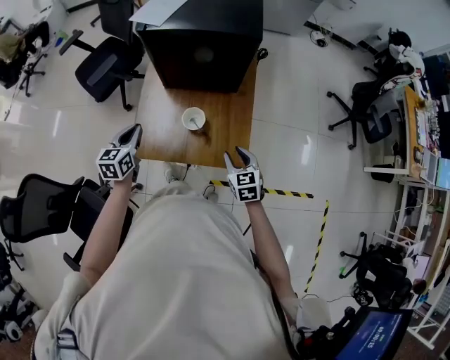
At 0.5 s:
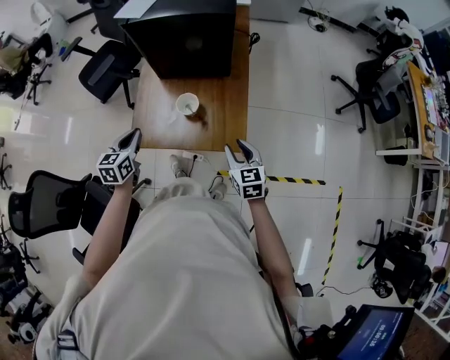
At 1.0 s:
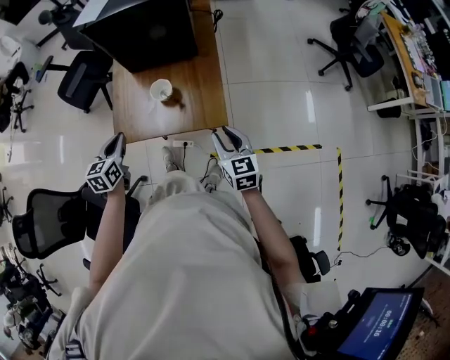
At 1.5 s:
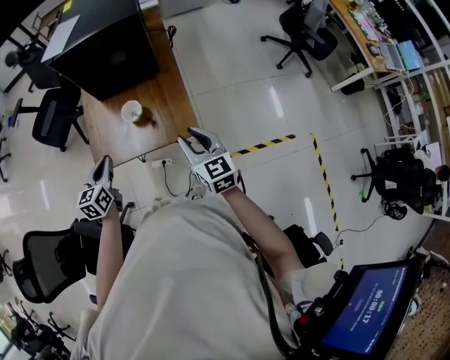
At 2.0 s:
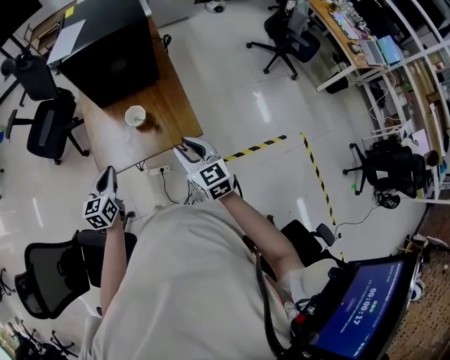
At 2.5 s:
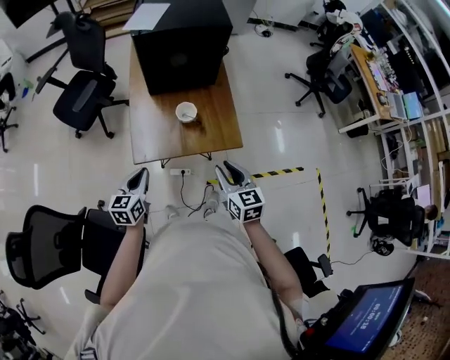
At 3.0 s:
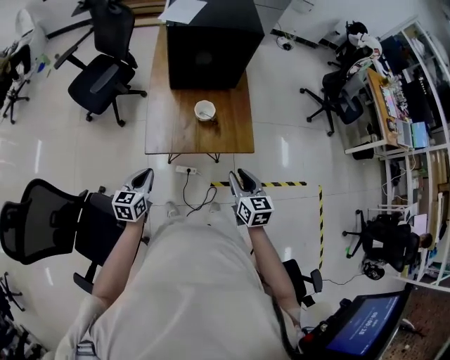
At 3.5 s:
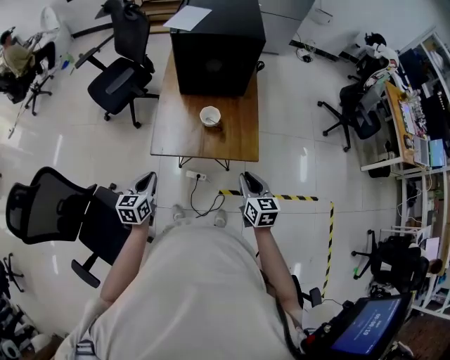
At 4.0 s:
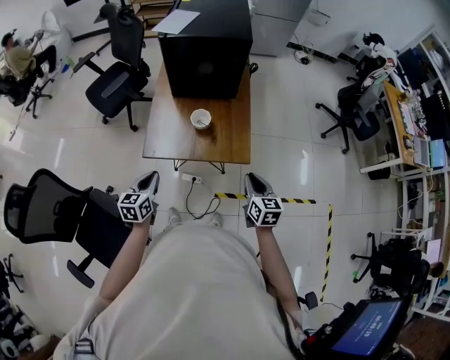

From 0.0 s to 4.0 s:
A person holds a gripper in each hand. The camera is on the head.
From 0.0 s to 2.0 s: The left gripper travels backward by approximately 15 cm. Meanwhile the right gripper moves upward and backward, approximately 20 cm, and swivels some 20 degrees.
From 2.0 s to 4.0 s: The left gripper moves backward, roughly 10 cm. Meanwhile the right gripper goes approximately 10 cm to the right and downward.

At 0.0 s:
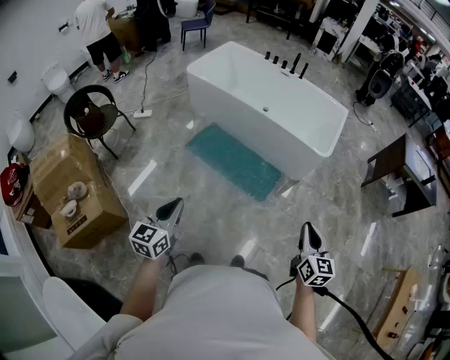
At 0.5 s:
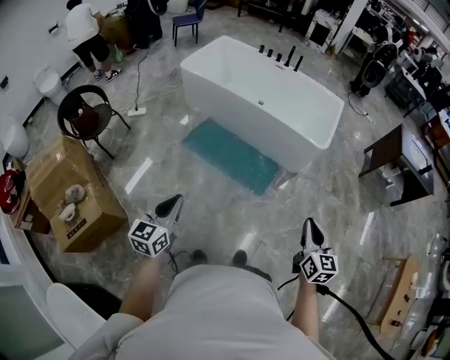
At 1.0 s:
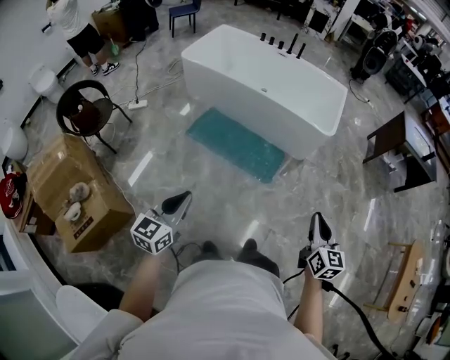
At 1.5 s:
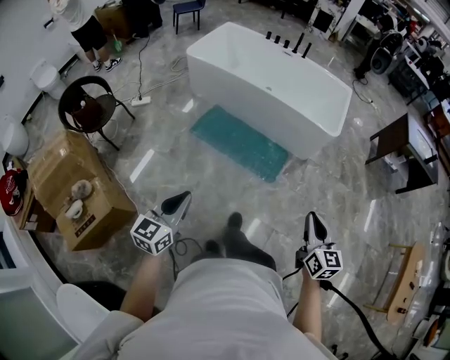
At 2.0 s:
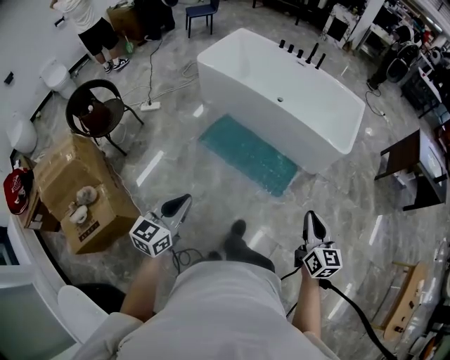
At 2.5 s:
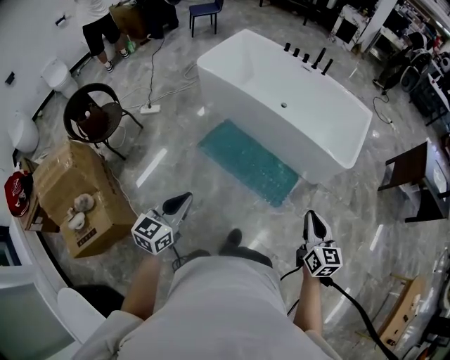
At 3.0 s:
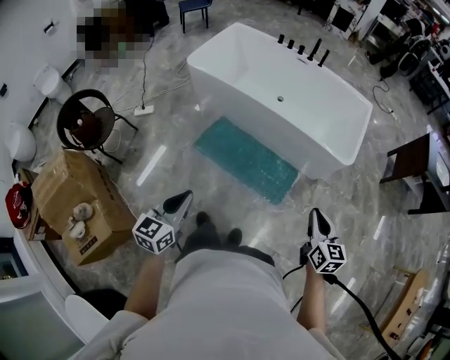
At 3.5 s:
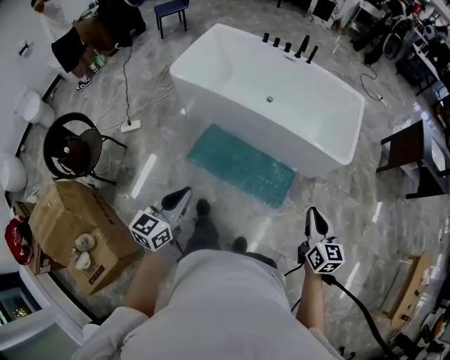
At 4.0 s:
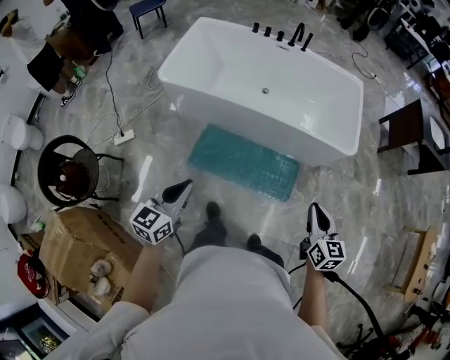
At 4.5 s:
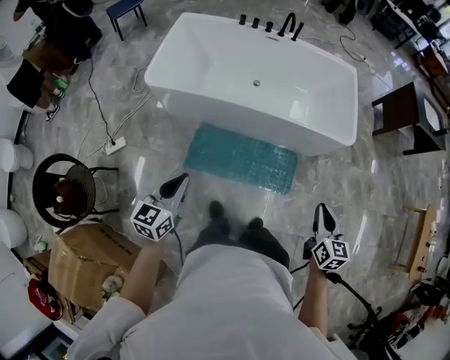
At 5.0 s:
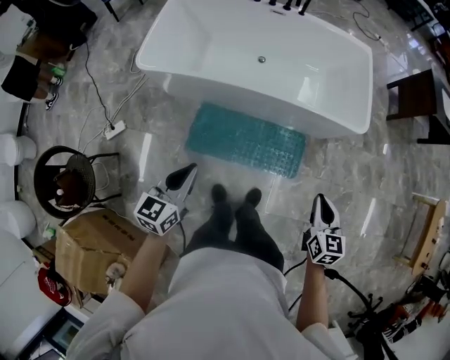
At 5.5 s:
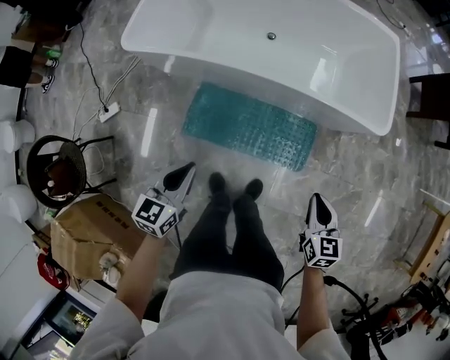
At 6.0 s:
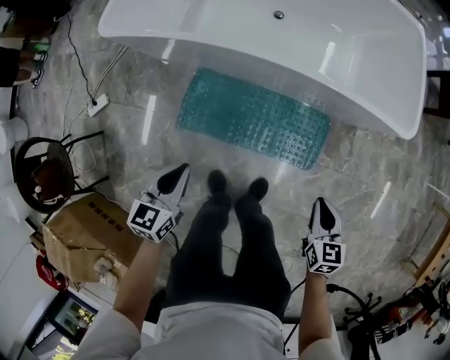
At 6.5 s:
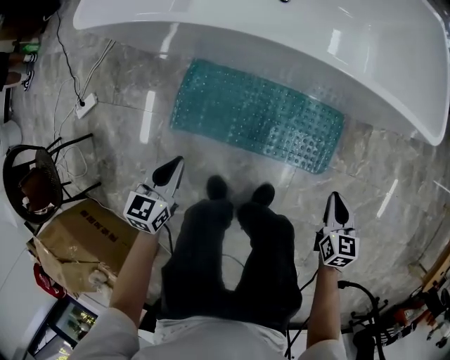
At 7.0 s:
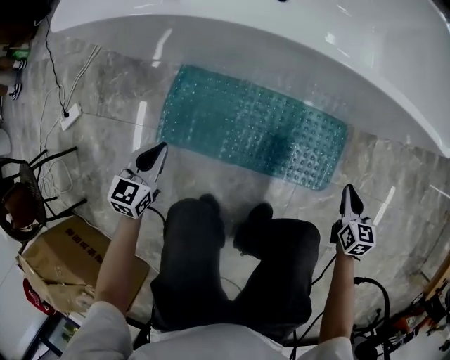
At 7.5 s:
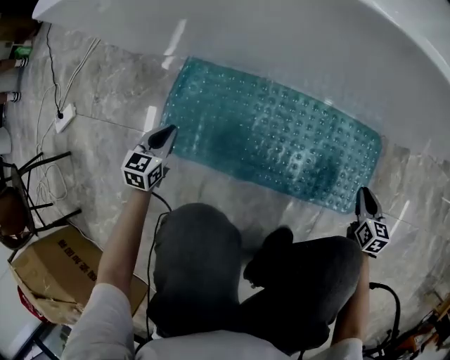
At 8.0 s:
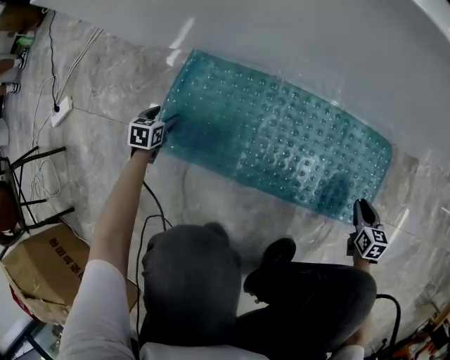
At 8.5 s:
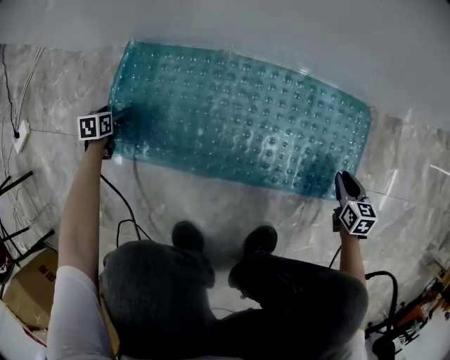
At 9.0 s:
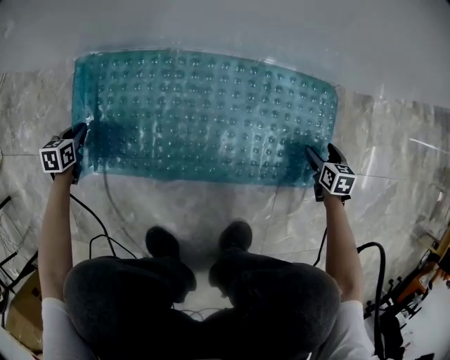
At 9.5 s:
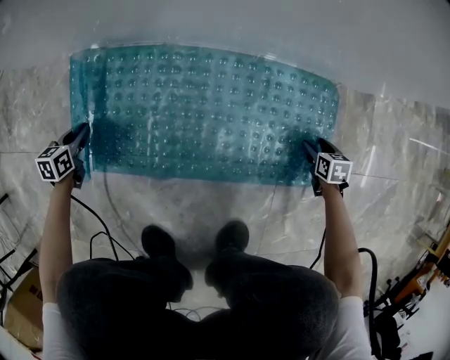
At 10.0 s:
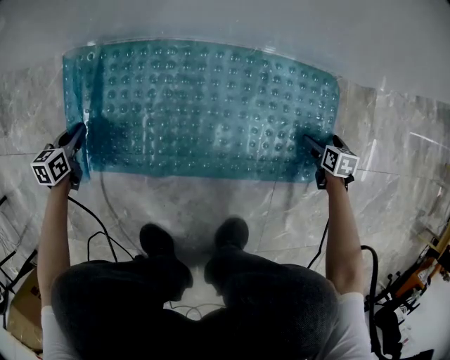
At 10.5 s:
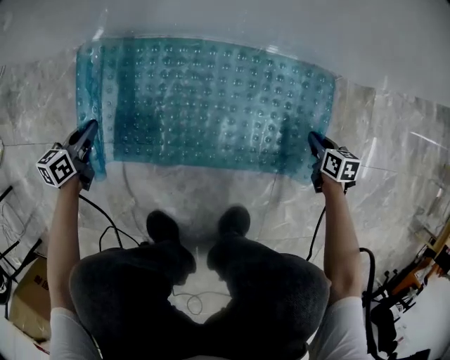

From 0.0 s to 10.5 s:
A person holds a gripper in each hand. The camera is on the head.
From 0.0 s to 2.0 s: The two grippers go roughly 15 cm to the left and forward.
From 2.0 s to 4.0 s: Both grippers are carried forward, some 50 cm.
From 4.0 s to 6.5 s: The left gripper moves downward and forward, roughly 70 cm, and swivels approximately 20 degrees. The right gripper goes approximately 60 cm downward, and rotates about 20 degrees.
From 6.5 s to 8.5 s: The two grippers go roughly 60 cm downward. The left gripper turns by about 30 degrees, and opens up.
From 8.5 s to 10.5 s: The right gripper opens, then closes once more, while the left gripper travels to the right and upward by roughly 20 cm, changes its angle by about 30 degrees, and closes up.

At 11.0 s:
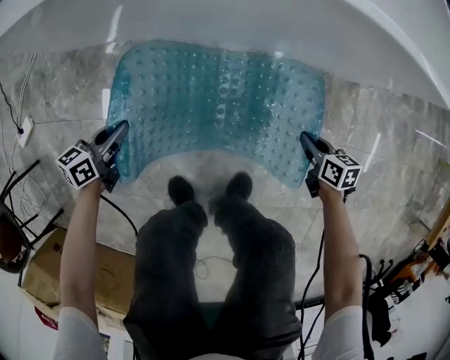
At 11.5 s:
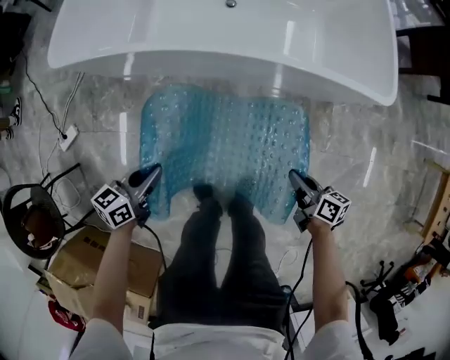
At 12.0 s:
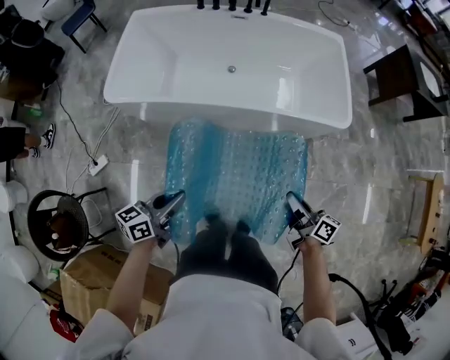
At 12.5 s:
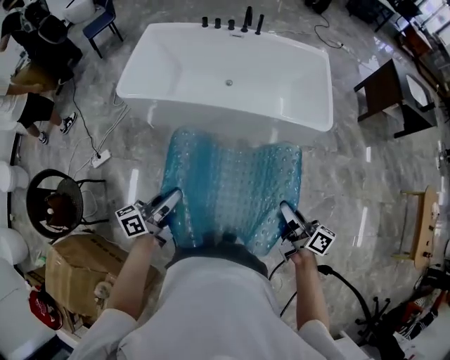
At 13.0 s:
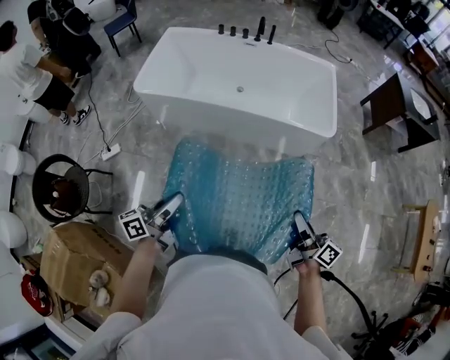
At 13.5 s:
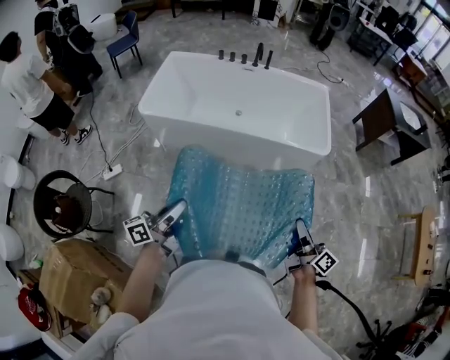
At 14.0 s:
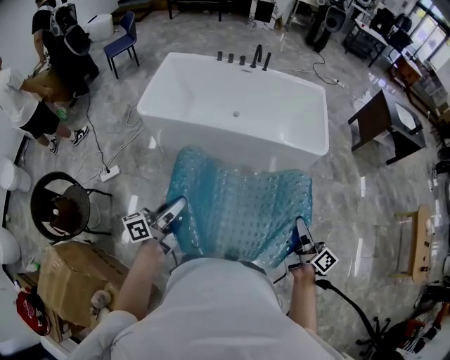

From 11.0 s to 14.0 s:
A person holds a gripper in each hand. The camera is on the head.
From 11.0 s to 12.5 s: Both grippers move upward, roughly 80 cm. The right gripper angles its fingers upward, by roughly 50 degrees; the left gripper changes its angle by some 30 degrees.
From 12.5 s to 14.0 s: The right gripper heads backward and upward, covering about 15 cm. The left gripper shifts roughly 15 cm backward, upward and to the left.

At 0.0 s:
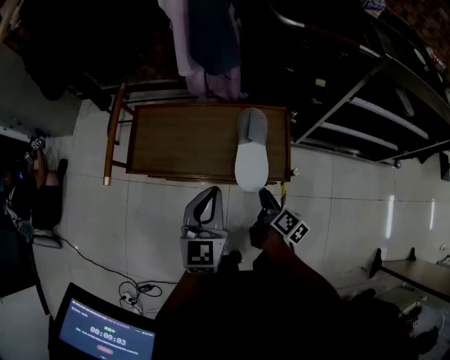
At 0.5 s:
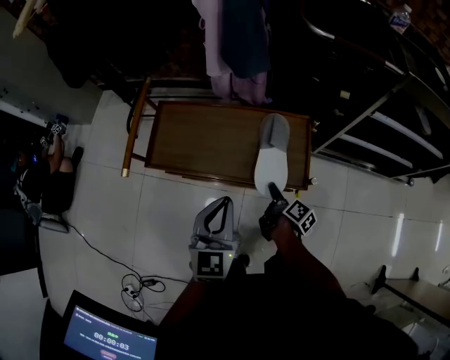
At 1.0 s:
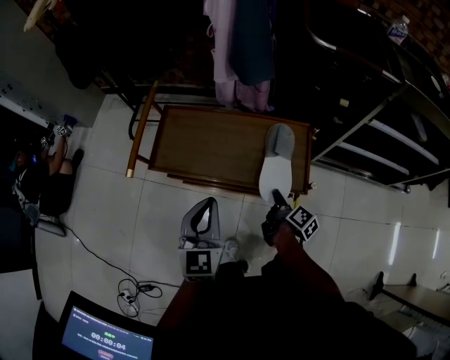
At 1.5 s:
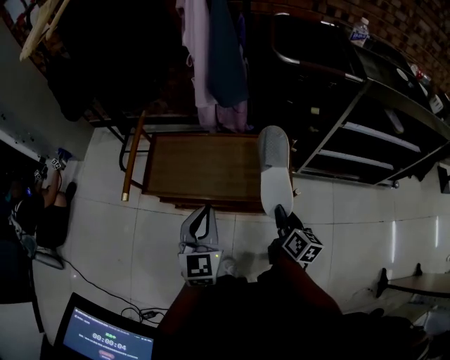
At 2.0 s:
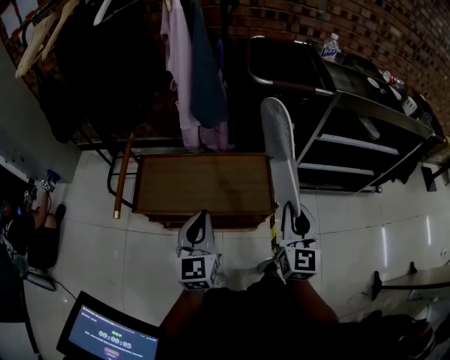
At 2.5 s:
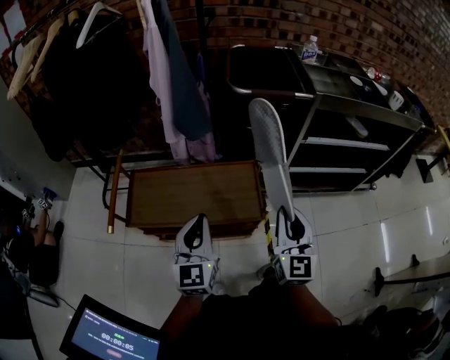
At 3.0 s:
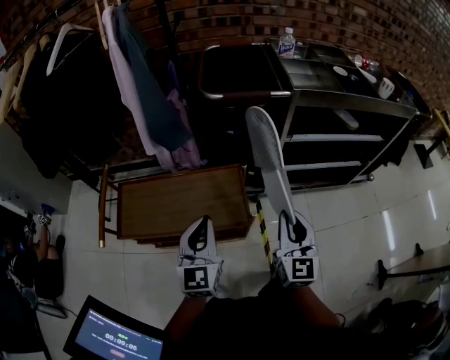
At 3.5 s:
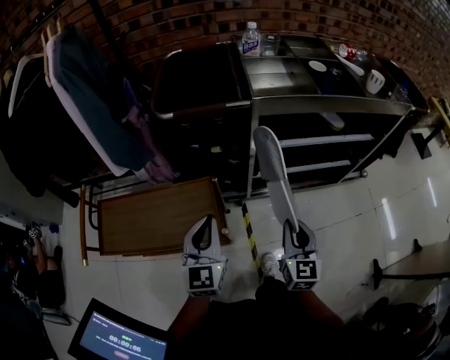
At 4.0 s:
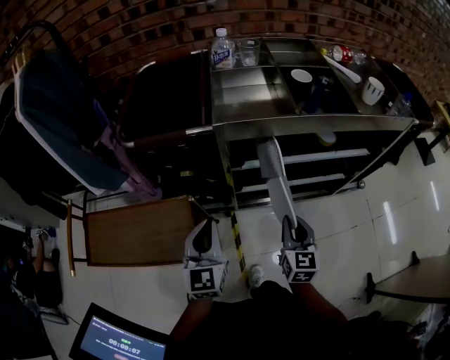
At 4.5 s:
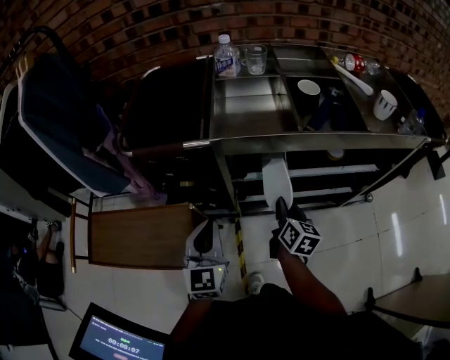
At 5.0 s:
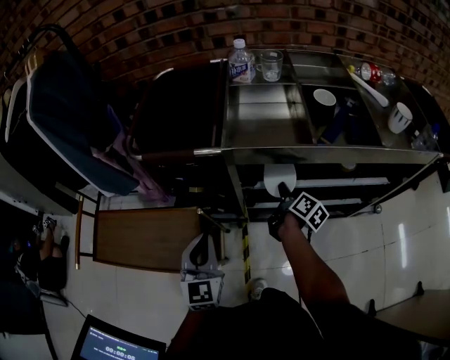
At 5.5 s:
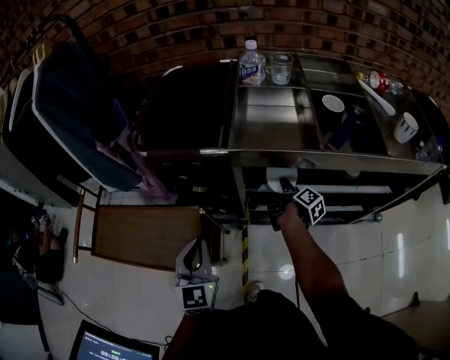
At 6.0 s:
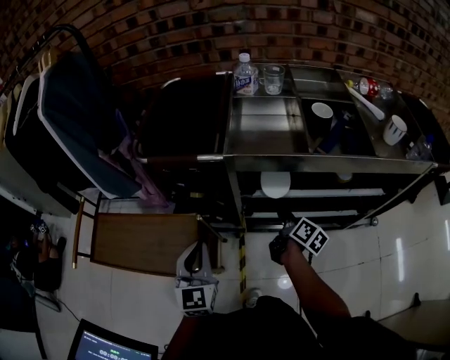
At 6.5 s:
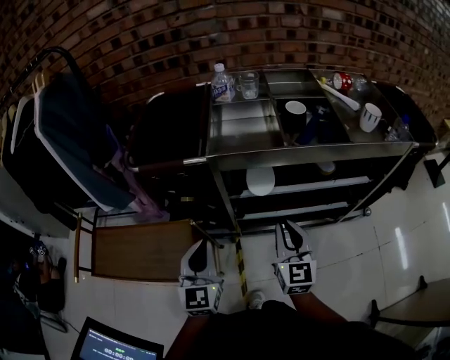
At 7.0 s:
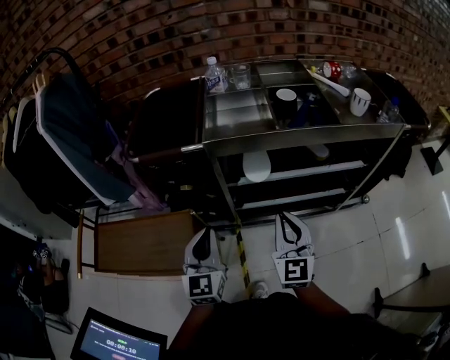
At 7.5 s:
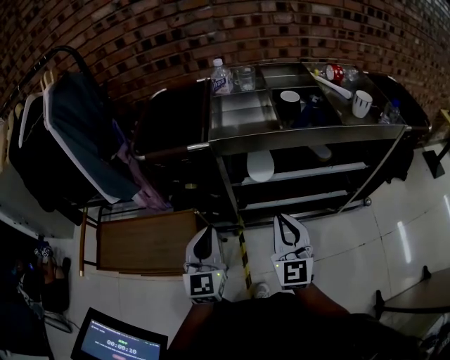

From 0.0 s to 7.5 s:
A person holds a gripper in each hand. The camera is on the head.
From 0.0 s to 2.0 s: The left gripper moves upward, about 5 cm; the right gripper heads upward, covering about 30 cm, and twists some 60 degrees counterclockwise, seen from behind.
From 2.0 s to 4.0 s: The two grippers go some 40 cm to the right and forward.
From 4.0 s to 5.5 s: The right gripper is displaced forward by some 25 cm, and rolls clockwise, seen from behind, by approximately 70 degrees.
From 5.5 s to 7.5 s: The left gripper is displaced to the right by approximately 5 cm; the right gripper goes some 35 cm backward and upward, rotates around the line of its fingers by about 90 degrees, counterclockwise from behind, and closes up.

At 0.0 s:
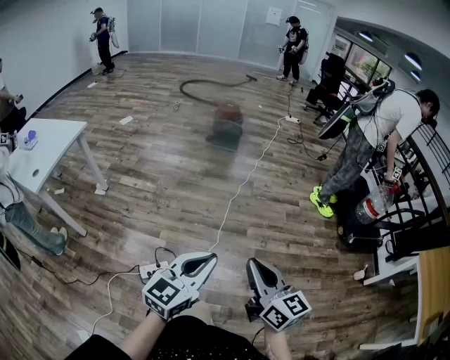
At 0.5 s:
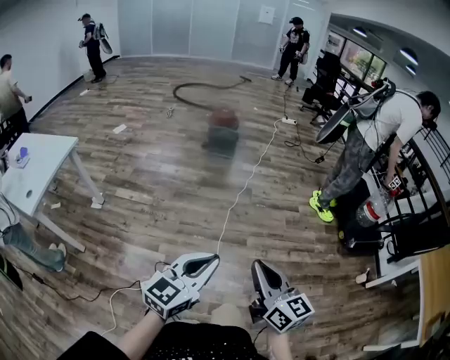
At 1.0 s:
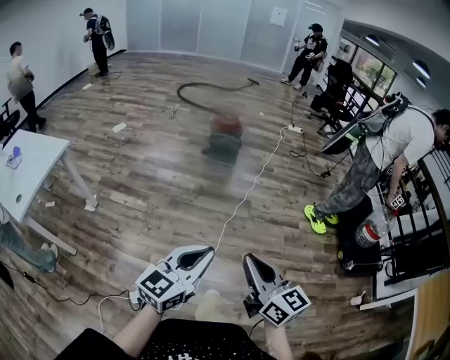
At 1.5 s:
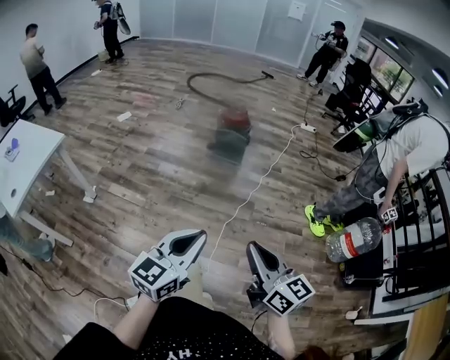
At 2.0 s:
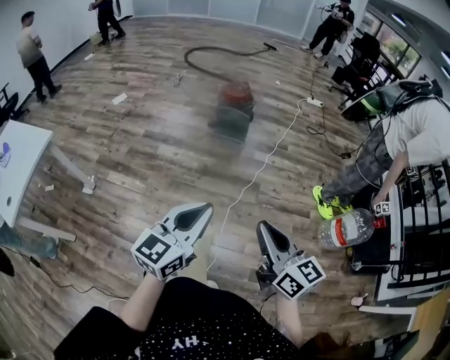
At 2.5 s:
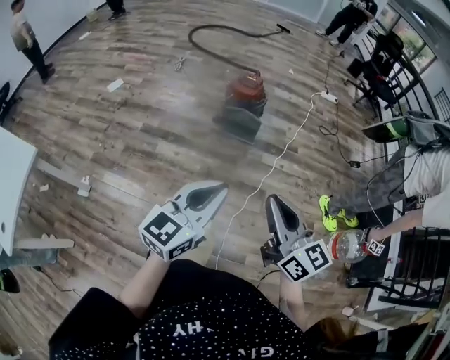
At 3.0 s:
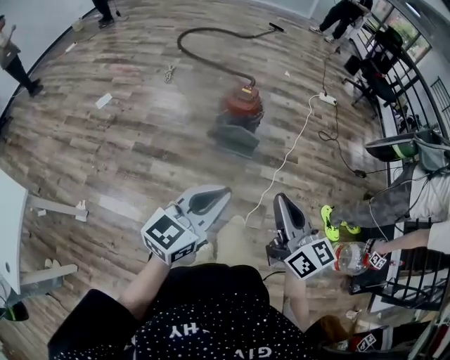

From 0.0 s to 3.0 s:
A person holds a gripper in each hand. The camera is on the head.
From 0.0 s to 1.5 s: The two grippers go some 35 cm forward.
From 1.5 s to 3.0 s: The two grippers travel together, forward, some 50 cm.
